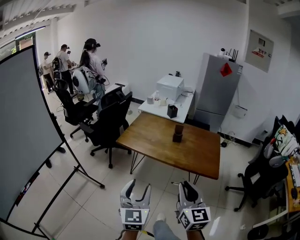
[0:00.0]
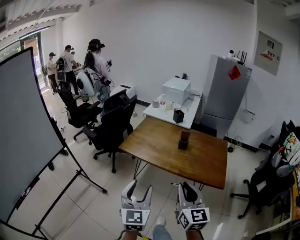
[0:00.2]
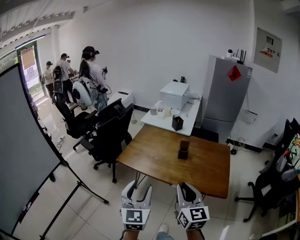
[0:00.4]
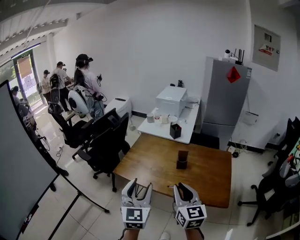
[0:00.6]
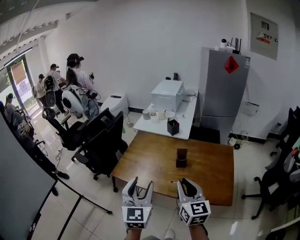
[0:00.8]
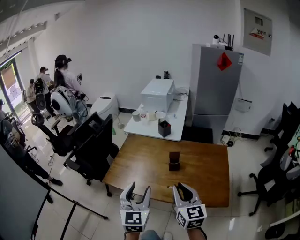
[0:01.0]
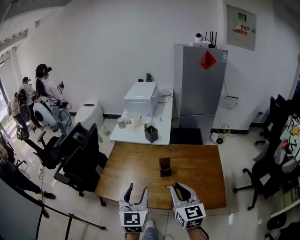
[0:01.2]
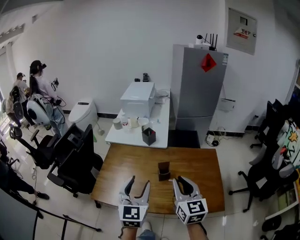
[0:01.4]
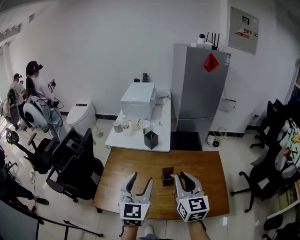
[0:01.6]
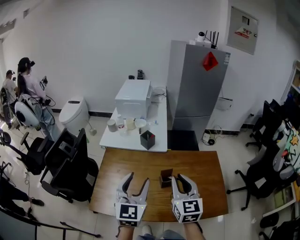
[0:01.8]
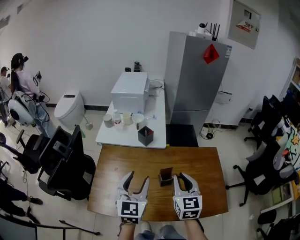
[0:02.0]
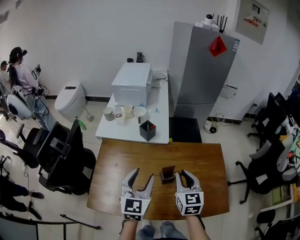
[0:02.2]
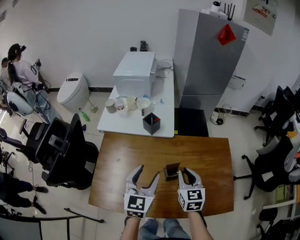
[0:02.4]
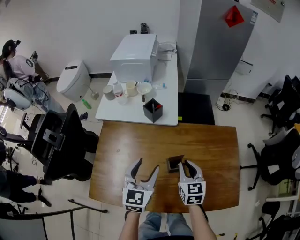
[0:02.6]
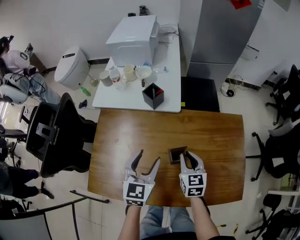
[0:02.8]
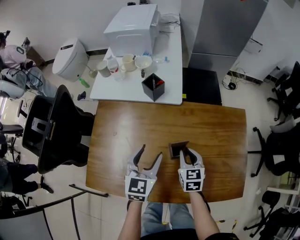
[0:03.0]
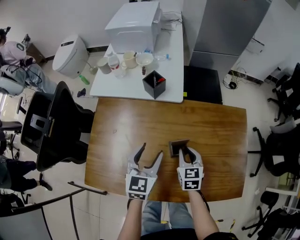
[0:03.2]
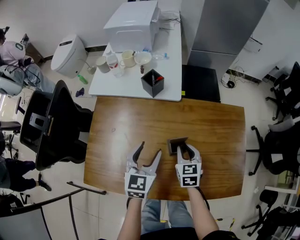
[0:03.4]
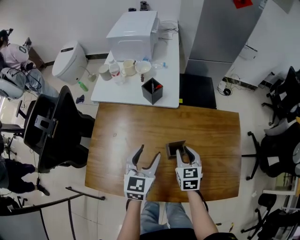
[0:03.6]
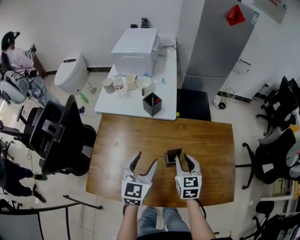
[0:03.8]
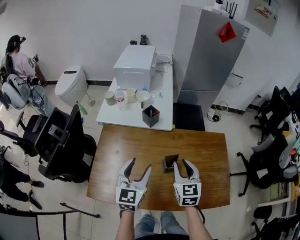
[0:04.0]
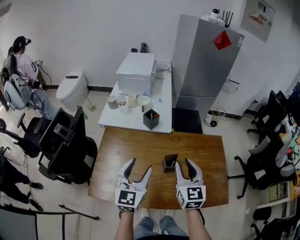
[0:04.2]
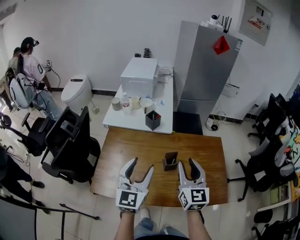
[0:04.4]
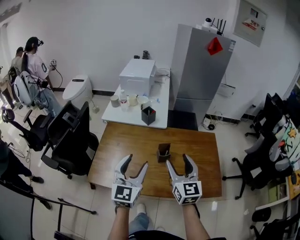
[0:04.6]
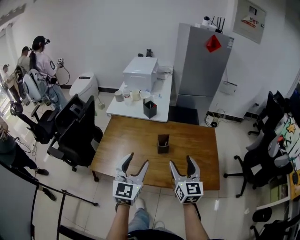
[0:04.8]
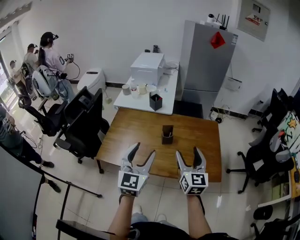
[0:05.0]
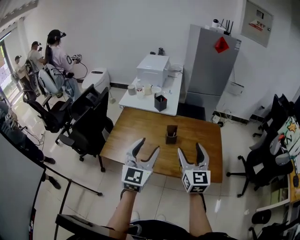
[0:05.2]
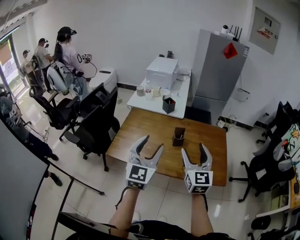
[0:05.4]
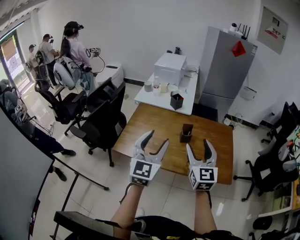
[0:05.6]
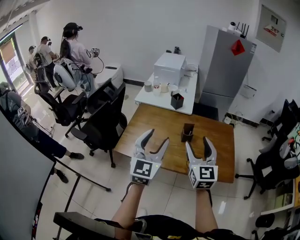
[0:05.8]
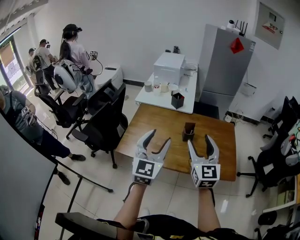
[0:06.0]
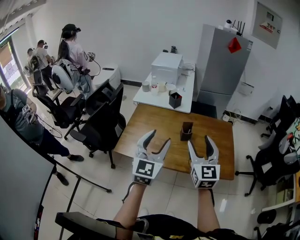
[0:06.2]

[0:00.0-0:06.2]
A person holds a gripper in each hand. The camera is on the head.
0:00.0 to 0:01.6: The pair of grippers is taken forward, approximately 50 cm. The left gripper changes its angle by about 20 degrees.
0:01.6 to 0:03.2: The grippers both shift downward and forward by roughly 35 cm. The left gripper swivels approximately 20 degrees, while the right gripper tips its fingers downward by some 30 degrees.
0:03.2 to 0:04.6: Both grippers move upward and backward, some 30 cm. The right gripper tips its fingers upward by some 30 degrees, and opens. Meanwhile the left gripper turns by about 20 degrees.
0:04.6 to 0:06.2: The grippers both shift backward and upward by some 15 cm.

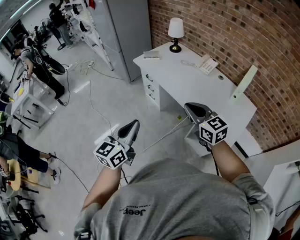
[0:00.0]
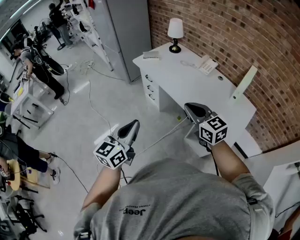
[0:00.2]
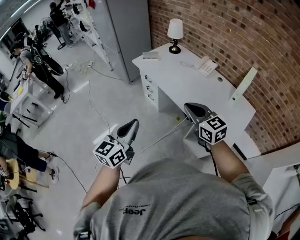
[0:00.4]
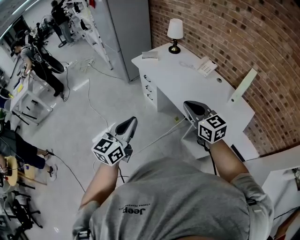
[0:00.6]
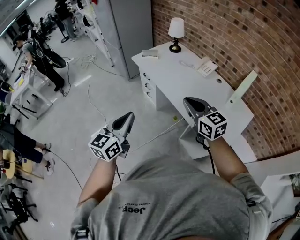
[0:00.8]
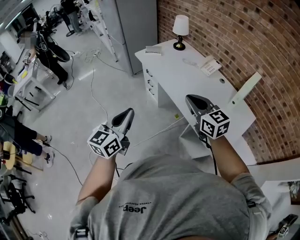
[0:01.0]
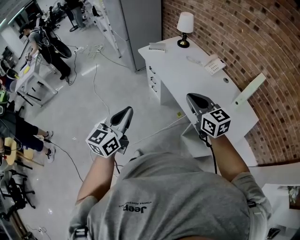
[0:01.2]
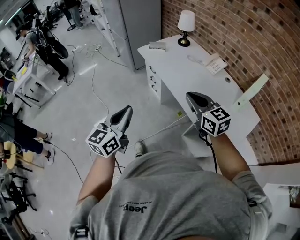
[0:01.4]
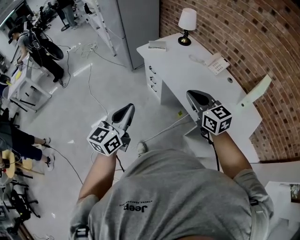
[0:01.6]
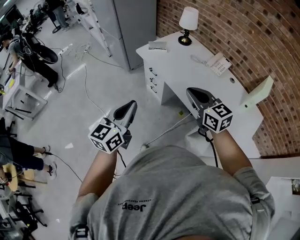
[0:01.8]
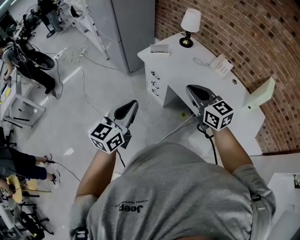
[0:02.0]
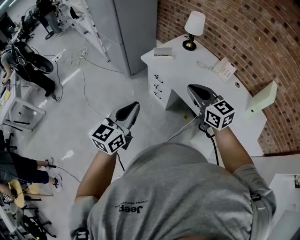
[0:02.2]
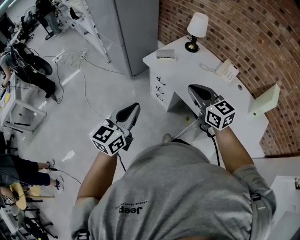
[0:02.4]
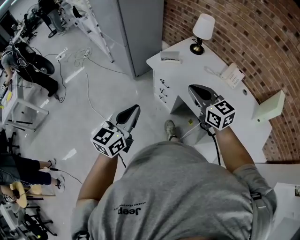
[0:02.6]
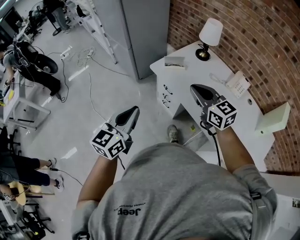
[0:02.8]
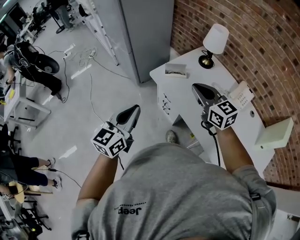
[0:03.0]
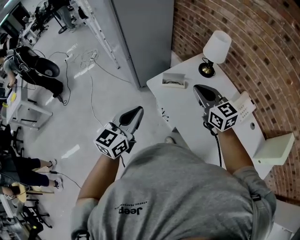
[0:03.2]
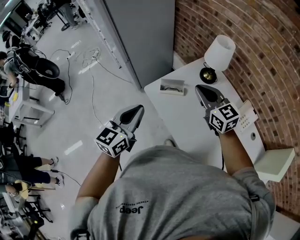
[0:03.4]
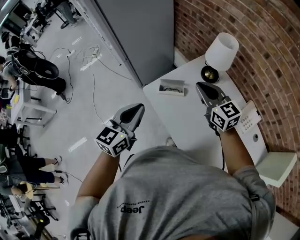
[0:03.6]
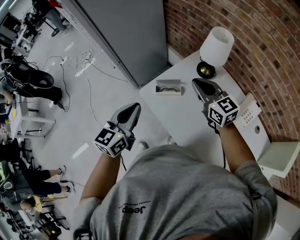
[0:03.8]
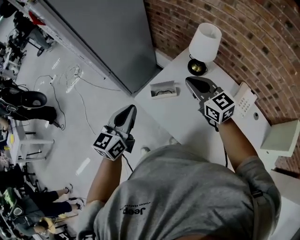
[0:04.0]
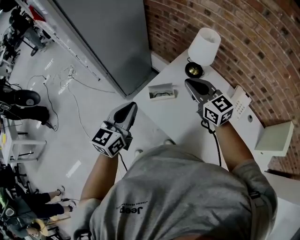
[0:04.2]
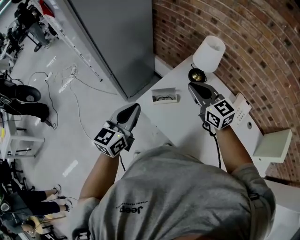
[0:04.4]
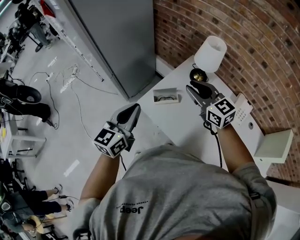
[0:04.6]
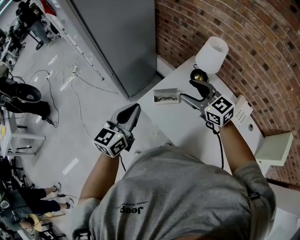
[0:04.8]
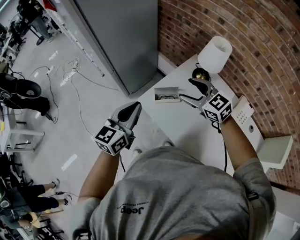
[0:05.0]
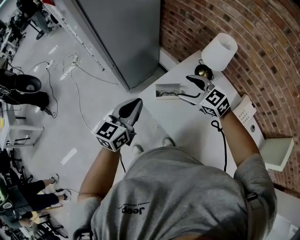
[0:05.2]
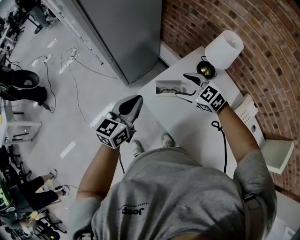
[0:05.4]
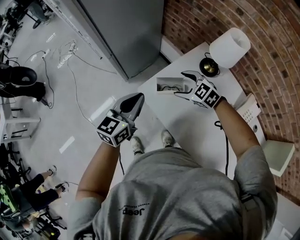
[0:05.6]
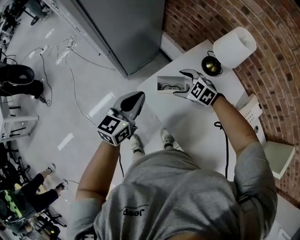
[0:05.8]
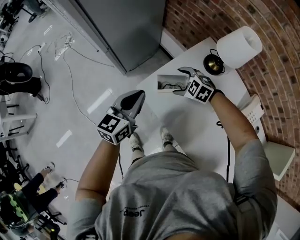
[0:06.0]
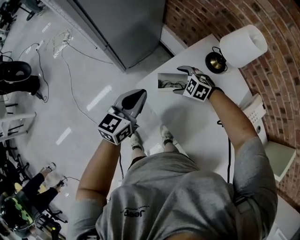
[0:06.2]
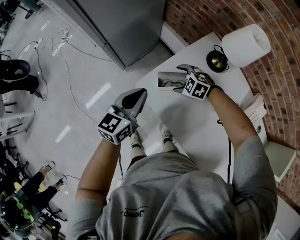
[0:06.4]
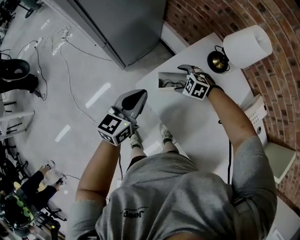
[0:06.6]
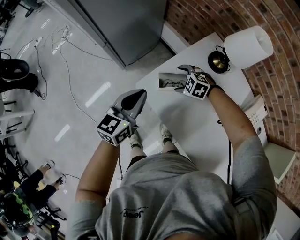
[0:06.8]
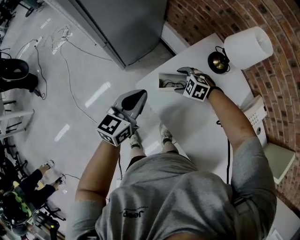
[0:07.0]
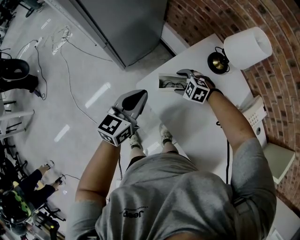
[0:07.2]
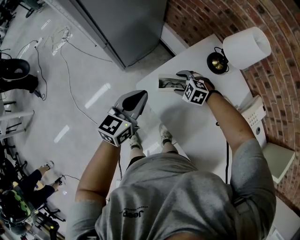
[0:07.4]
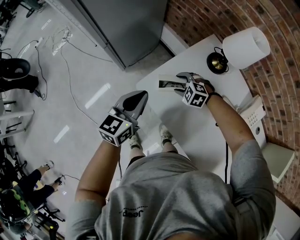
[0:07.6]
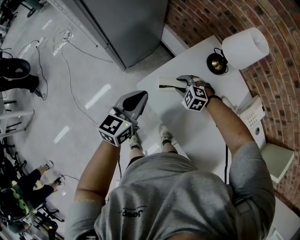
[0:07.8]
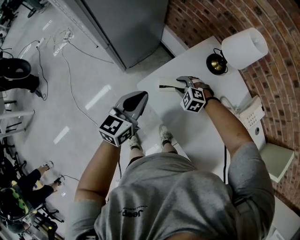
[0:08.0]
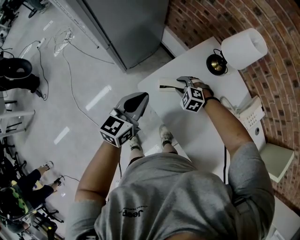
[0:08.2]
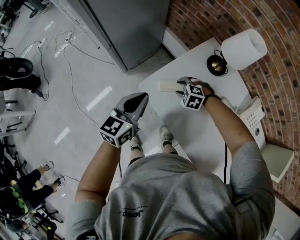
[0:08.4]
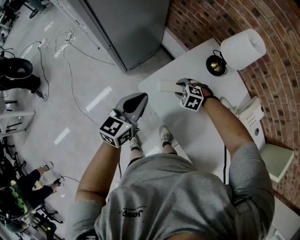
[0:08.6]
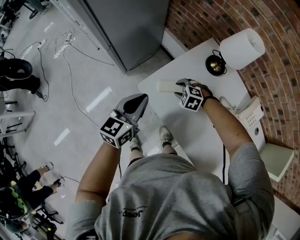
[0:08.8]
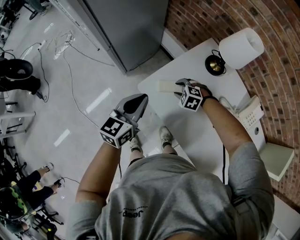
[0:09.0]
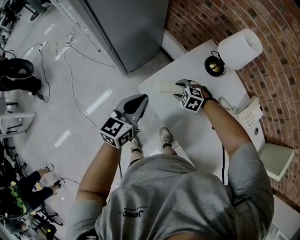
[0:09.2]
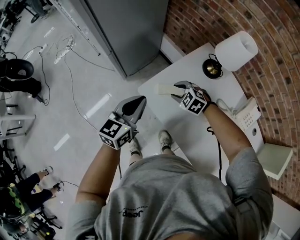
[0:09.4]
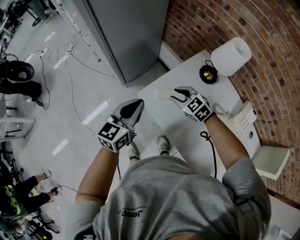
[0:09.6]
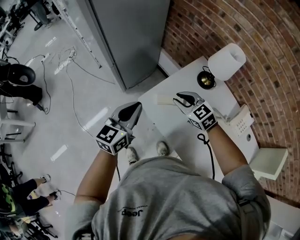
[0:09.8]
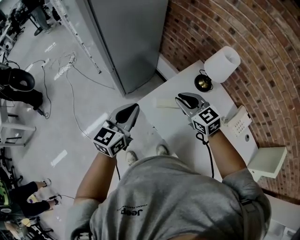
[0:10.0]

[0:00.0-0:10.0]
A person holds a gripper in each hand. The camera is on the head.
0:00.0 to 0:01.4: Both grippers move forward, about 5 cm.
0:01.4 to 0:02.8: The two grippers go about 35 cm forward and to the left.
0:02.8 to 0:04.2: The two grippers go about 30 cm forward.
0:04.2 to 0:05.8: The right gripper shifts some 25 cm downward, tilts its fingers some 40 degrees downward, and opens, while the left gripper travels downward and forward by about 10 cm.
0:05.8 to 0:07.2: The left gripper shifts by some 5 cm. Meanwhile the right gripper is displaced downward by some 10 cm.
0:07.2 to 0:08.6: The right gripper closes up.
0:08.6 to 0:10.0: The left gripper travels upward by approximately 10 cm. The right gripper is displaced upward by approximately 25 cm, and angles its fingers upward, by approximately 40 degrees.

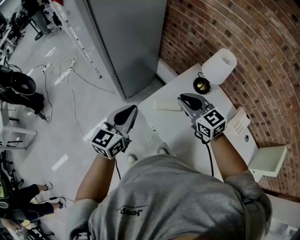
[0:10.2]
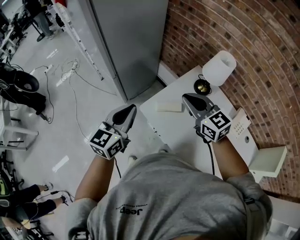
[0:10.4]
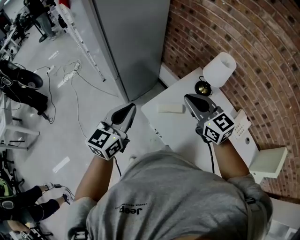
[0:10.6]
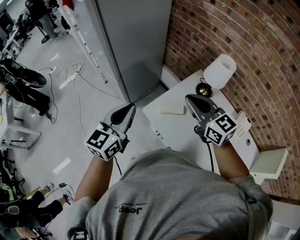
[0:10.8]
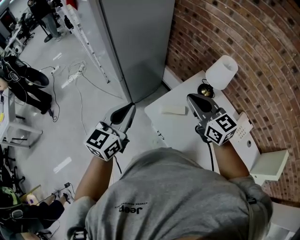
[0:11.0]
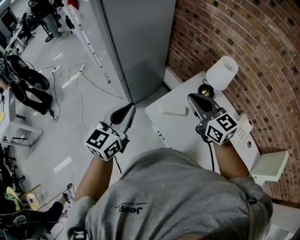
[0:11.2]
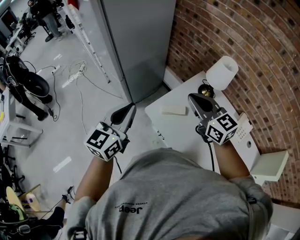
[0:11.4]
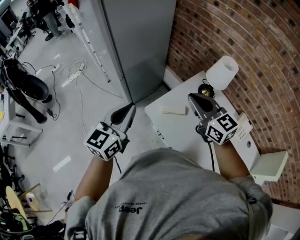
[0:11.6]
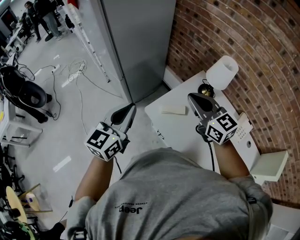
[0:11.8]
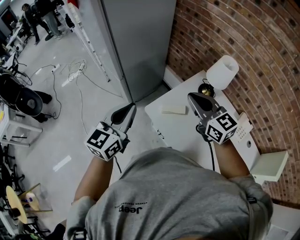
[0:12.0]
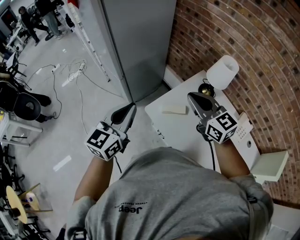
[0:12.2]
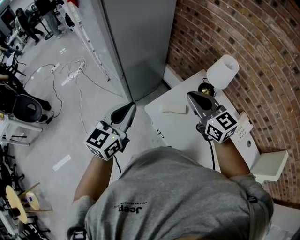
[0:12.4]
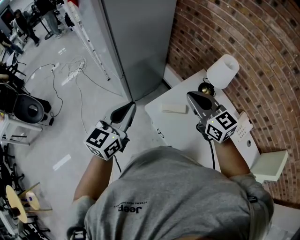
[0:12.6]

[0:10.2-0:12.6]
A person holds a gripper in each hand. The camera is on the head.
0:10.2 to 0:11.4: The grippers both shift upward by about 10 cm.
0:11.4 to 0:12.6: Both grippers stay put.

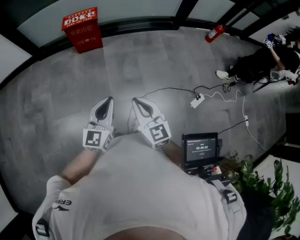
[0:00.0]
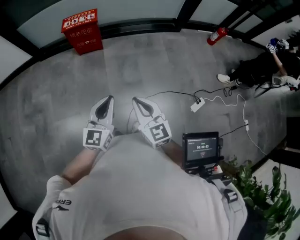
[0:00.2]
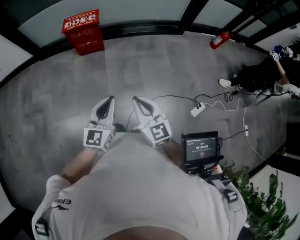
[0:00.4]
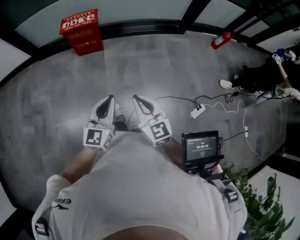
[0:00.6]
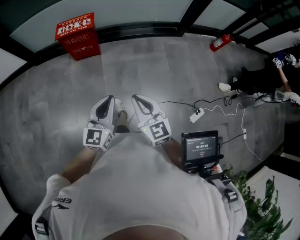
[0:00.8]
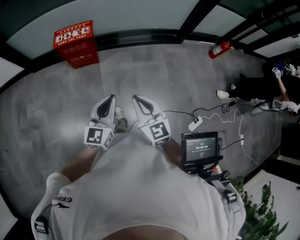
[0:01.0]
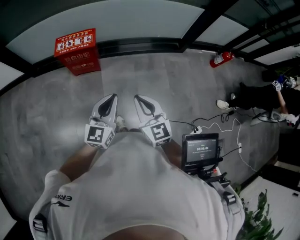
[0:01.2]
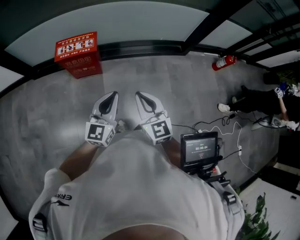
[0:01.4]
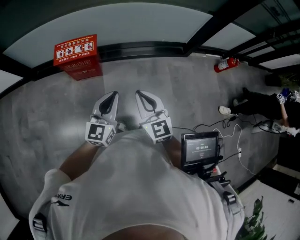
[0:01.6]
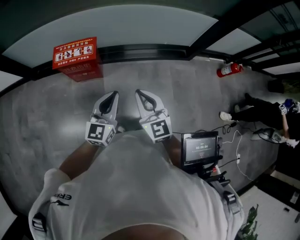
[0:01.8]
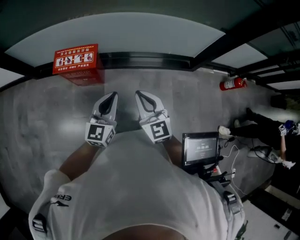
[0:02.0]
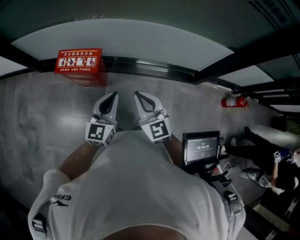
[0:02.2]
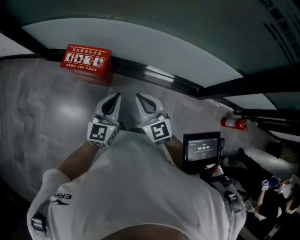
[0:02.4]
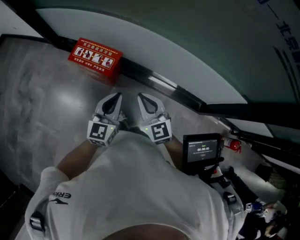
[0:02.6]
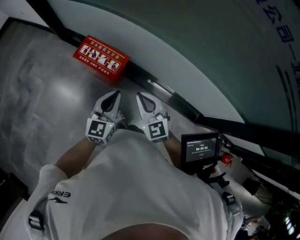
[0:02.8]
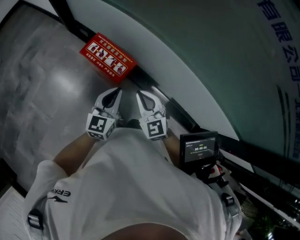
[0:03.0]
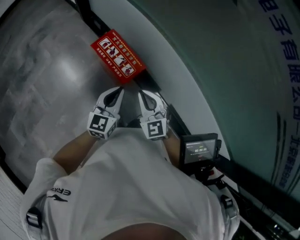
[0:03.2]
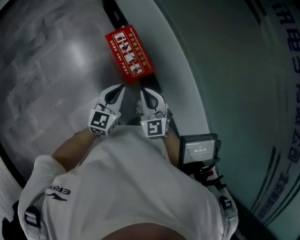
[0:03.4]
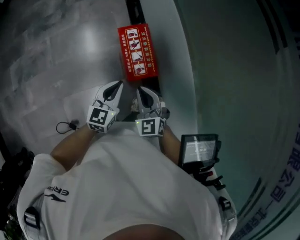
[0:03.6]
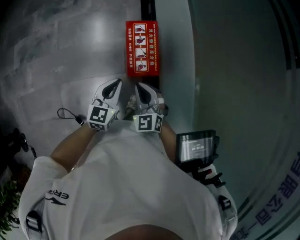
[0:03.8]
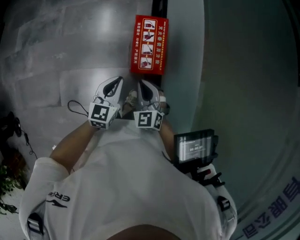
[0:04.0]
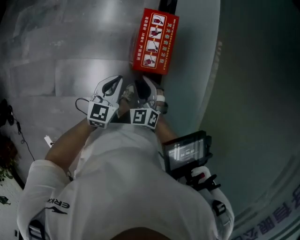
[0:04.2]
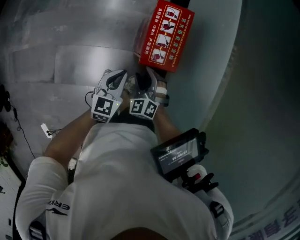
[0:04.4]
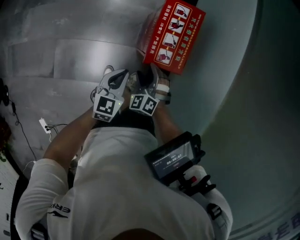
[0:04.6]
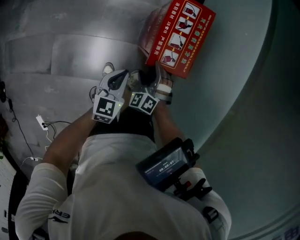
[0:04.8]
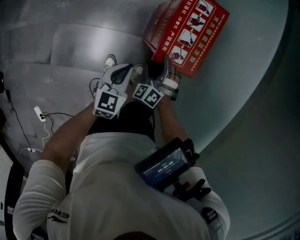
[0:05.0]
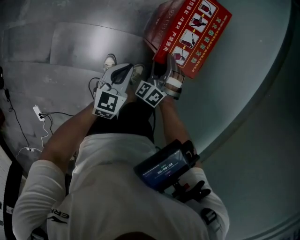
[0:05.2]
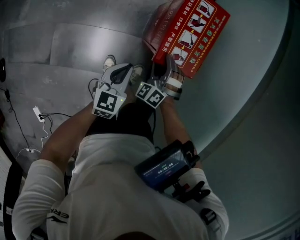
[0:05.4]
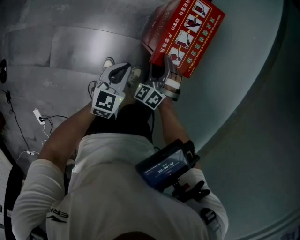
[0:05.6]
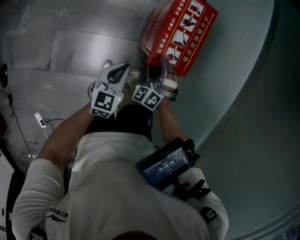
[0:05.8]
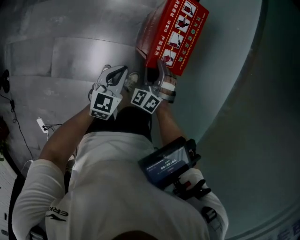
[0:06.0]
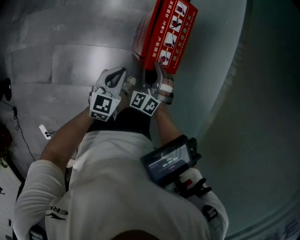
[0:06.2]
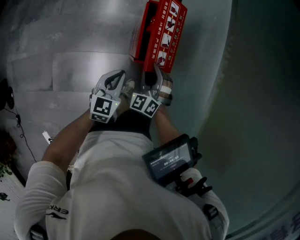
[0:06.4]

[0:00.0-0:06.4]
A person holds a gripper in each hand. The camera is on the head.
0:00.0 to 0:01.6: The pair of grippers is taken forward, some 50 cm.
0:01.6 to 0:03.2: The right gripper shifts by some 40 cm, and swivels approximately 60 degrees. The left gripper ends up roughly 35 cm from where it was, and changes its angle by some 50 degrees.
0:03.2 to 0:04.8: The grippers both shift downward by approximately 30 cm. The right gripper rotates around the line of its fingers by some 50 degrees, counterclockwise from behind, and opens its fingers. The left gripper changes its angle by roughly 50 degrees.
0:04.8 to 0:06.4: The right gripper is displaced upward by approximately 5 cm, and closes its fingers.
